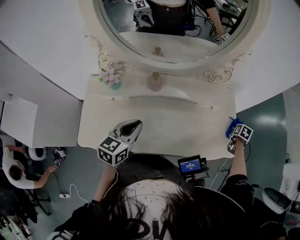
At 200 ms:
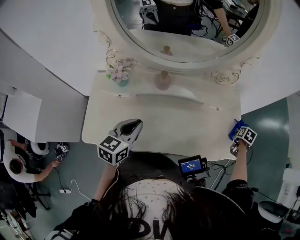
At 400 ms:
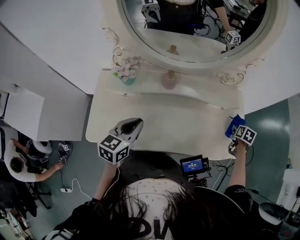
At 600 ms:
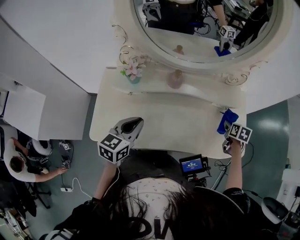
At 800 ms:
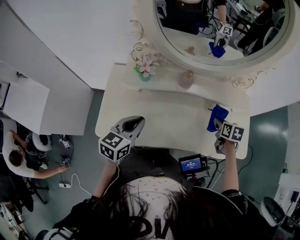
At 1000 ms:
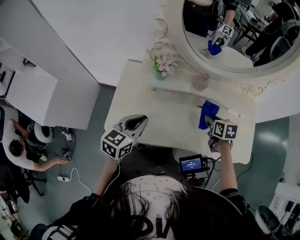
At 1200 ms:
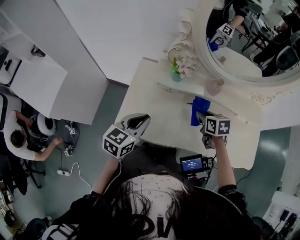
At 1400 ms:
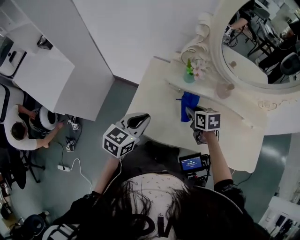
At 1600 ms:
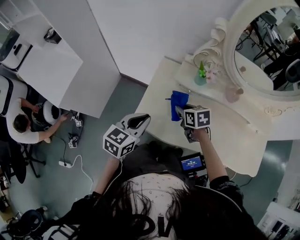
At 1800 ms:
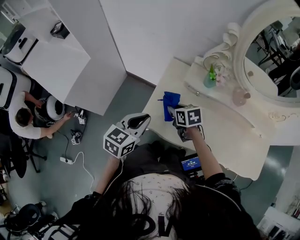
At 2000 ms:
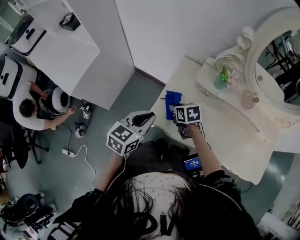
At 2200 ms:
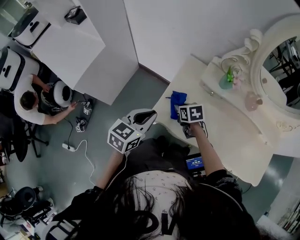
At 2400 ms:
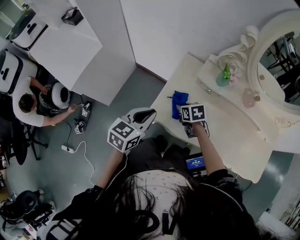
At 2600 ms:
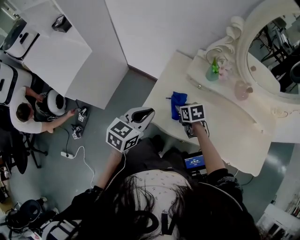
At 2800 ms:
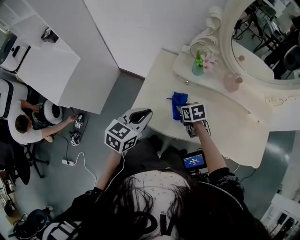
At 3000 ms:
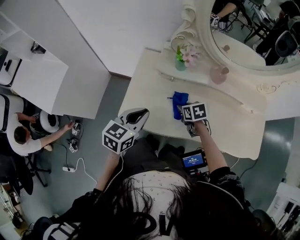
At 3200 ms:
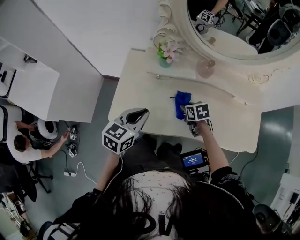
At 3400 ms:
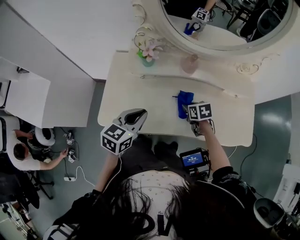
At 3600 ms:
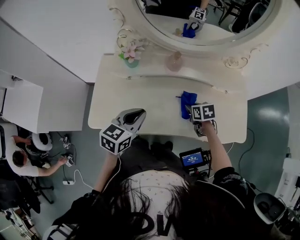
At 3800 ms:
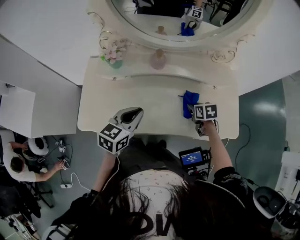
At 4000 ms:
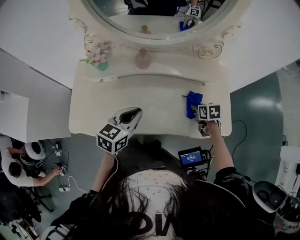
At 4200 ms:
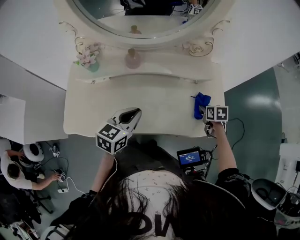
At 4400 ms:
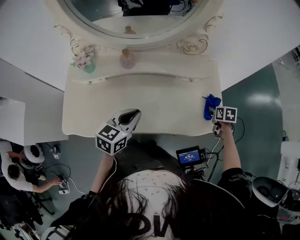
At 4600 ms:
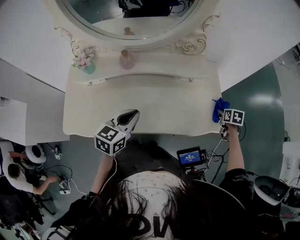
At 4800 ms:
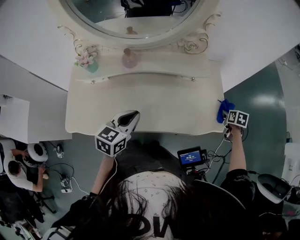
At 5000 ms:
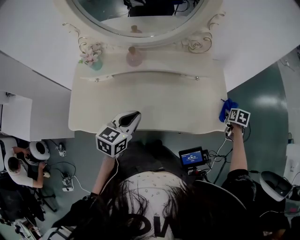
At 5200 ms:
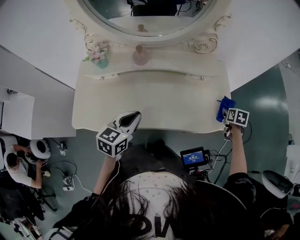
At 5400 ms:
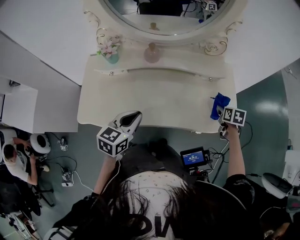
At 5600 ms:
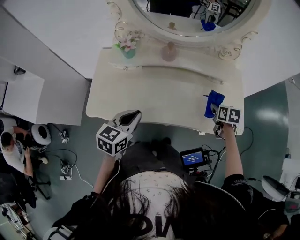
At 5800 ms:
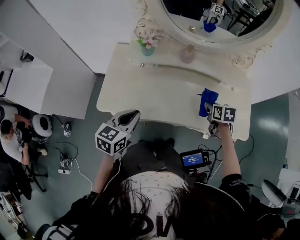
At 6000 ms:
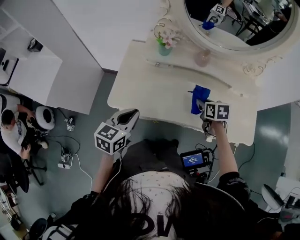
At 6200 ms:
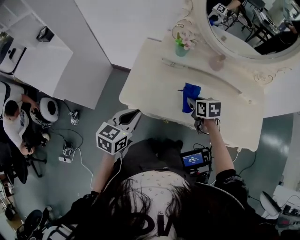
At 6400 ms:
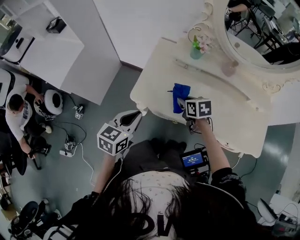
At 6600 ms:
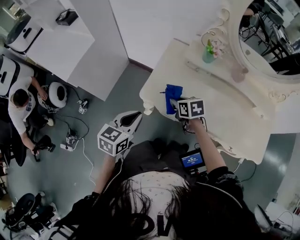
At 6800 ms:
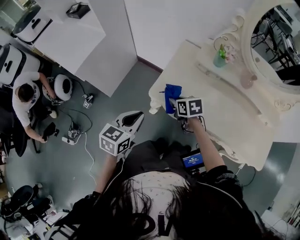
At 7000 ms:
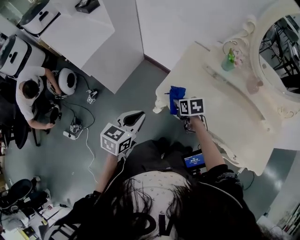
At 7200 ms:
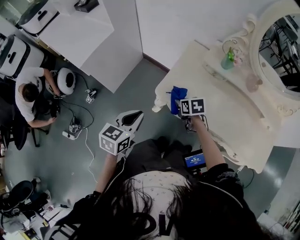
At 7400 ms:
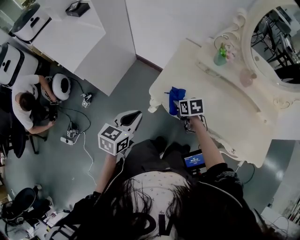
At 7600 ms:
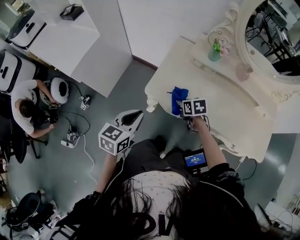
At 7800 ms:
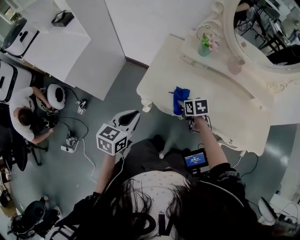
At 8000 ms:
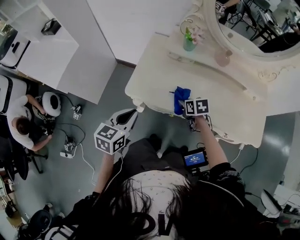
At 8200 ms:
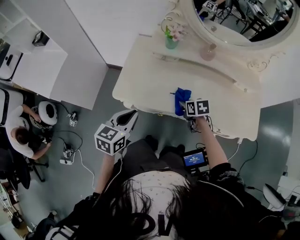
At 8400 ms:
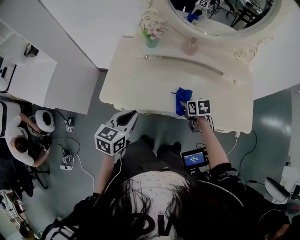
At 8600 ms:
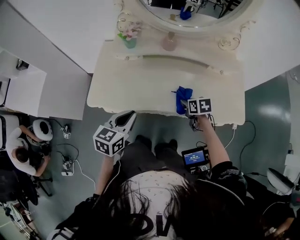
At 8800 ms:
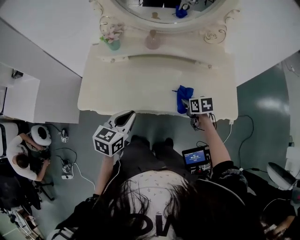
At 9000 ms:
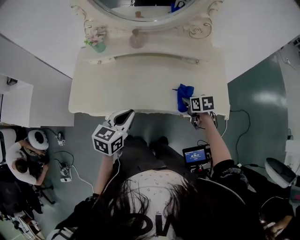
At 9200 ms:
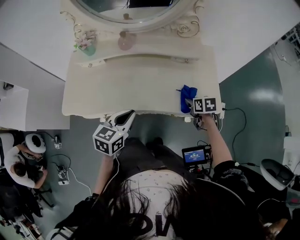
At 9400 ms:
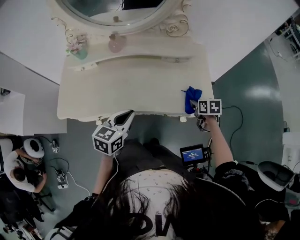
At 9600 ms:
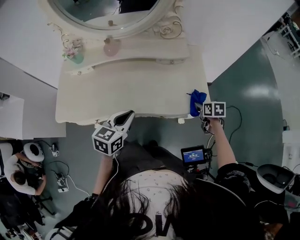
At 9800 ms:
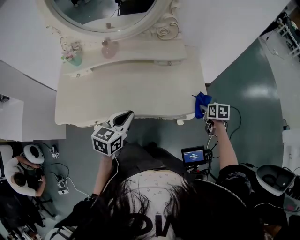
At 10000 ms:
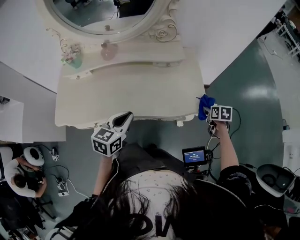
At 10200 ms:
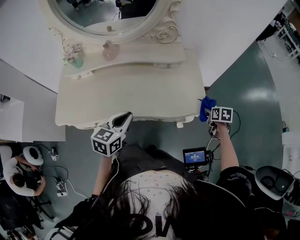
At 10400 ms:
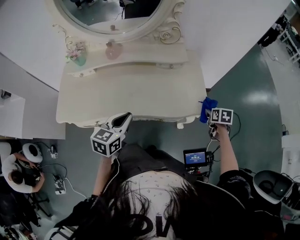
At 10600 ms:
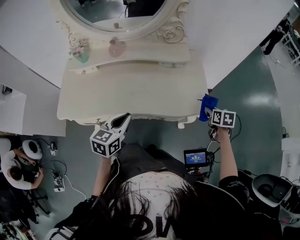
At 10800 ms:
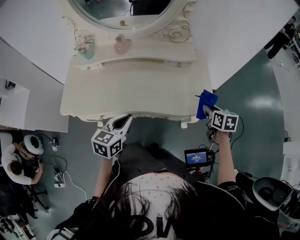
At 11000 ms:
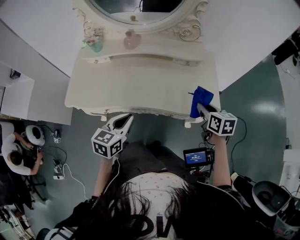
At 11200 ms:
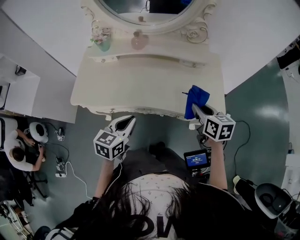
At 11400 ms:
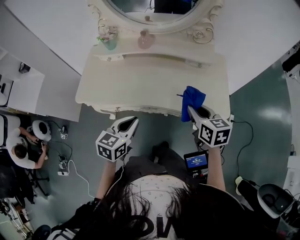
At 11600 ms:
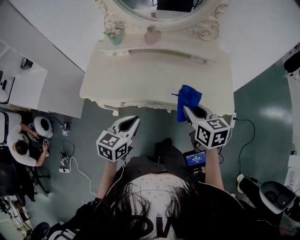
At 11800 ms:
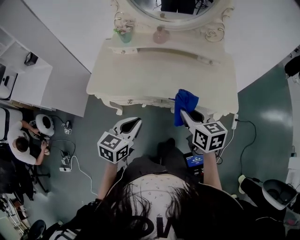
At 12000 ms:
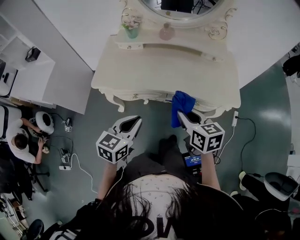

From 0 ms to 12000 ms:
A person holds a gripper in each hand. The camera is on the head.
From 0 ms to 1600 ms: The right gripper moves about 80 cm, and rotates approximately 70 degrees, while the left gripper moves roughly 30 cm.
From 1600 ms to 3000 ms: The left gripper shifts roughly 5 cm to the right, while the right gripper travels to the right and downward by some 10 cm.
From 3000 ms to 4400 ms: The left gripper moves approximately 35 cm. The right gripper shifts by some 60 cm, and turns by roughly 40 degrees.
From 4400 ms to 6000 ms: The left gripper moves some 30 cm, while the right gripper moves roughly 40 cm, and swivels approximately 30 degrees.
From 6000 ms to 7600 ms: The right gripper moves approximately 30 cm, and rotates about 20 degrees, while the left gripper ends up roughly 15 cm from where it was.
From 7600 ms to 9000 ms: The two grippers go about 40 cm to the right. The left gripper rotates roughly 20 degrees, while the right gripper turns by approximately 30 degrees.
From 9000 ms to 10400 ms: The left gripper travels to the right by about 10 cm. Meanwhile the right gripper goes some 30 cm to the right, and changes its angle by about 20 degrees.
From 10400 ms to 12000 ms: The left gripper is displaced backward and to the left by some 25 cm; the right gripper goes about 50 cm to the left and upward, and angles its fingers upward, by some 30 degrees.

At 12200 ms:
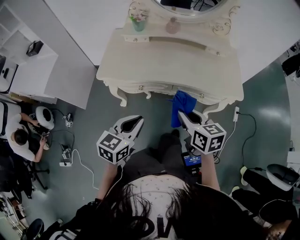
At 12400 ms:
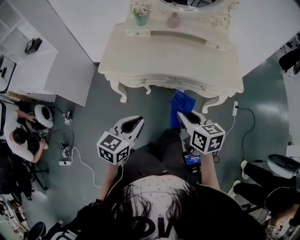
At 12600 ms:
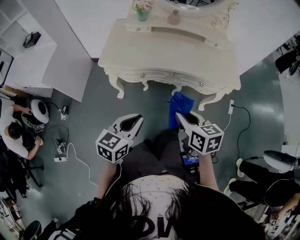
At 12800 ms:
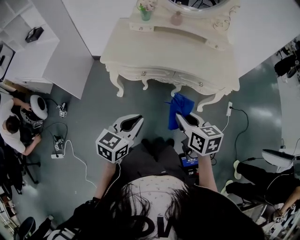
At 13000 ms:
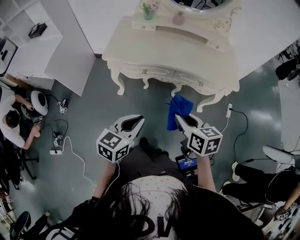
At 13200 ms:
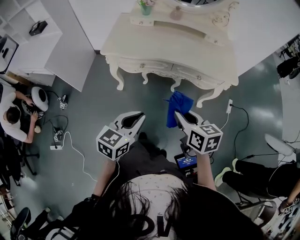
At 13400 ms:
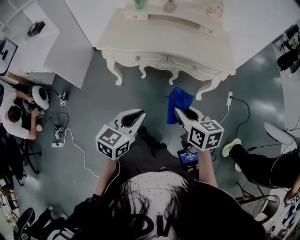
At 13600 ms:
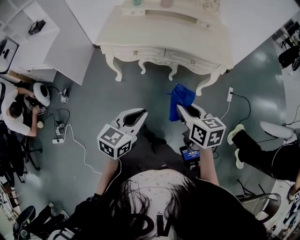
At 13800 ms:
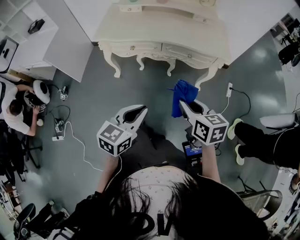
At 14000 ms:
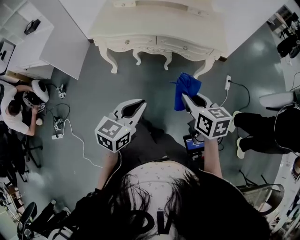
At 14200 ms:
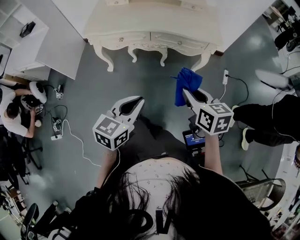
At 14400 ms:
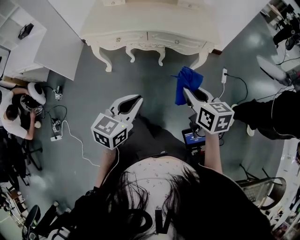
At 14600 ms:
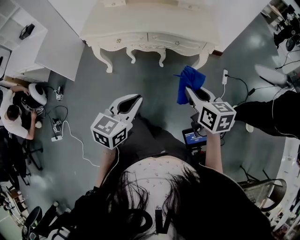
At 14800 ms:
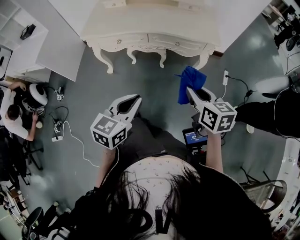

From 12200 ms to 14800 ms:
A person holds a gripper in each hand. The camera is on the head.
From 12200 ms to 13400 ms: The two grippers go roughly 15 cm backward.
From 13400 ms to 14800 ms: The right gripper travels to the right by about 15 cm. Meanwhile the left gripper shifts about 10 cm to the right.

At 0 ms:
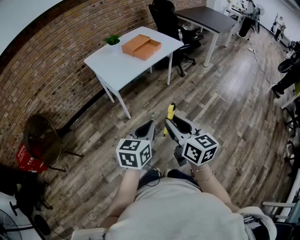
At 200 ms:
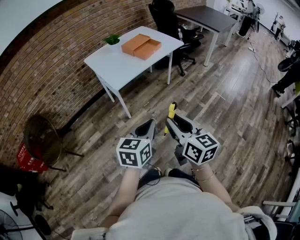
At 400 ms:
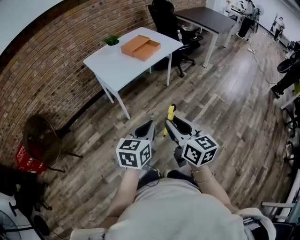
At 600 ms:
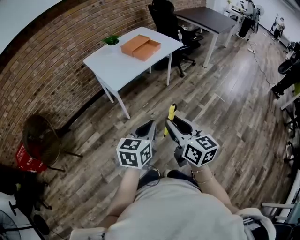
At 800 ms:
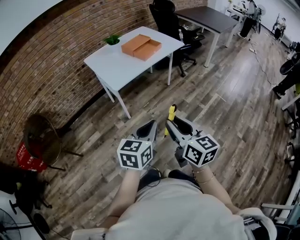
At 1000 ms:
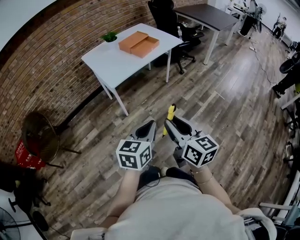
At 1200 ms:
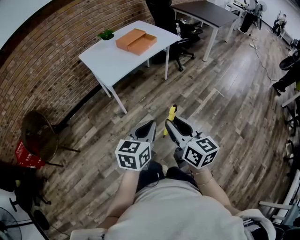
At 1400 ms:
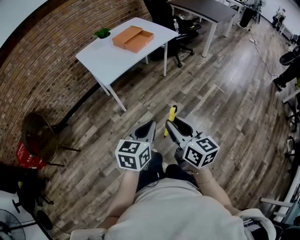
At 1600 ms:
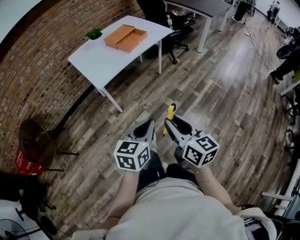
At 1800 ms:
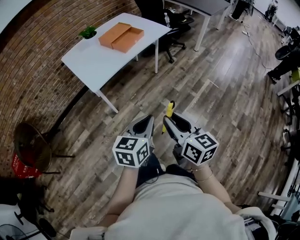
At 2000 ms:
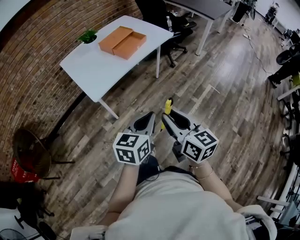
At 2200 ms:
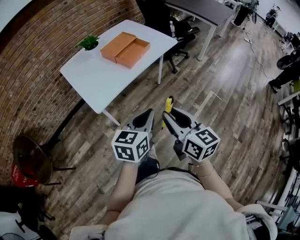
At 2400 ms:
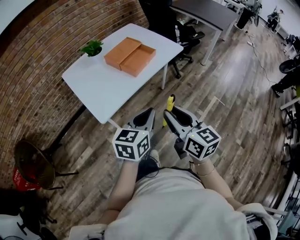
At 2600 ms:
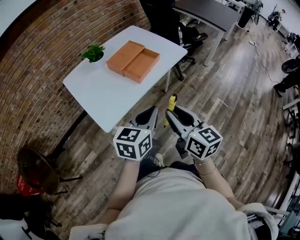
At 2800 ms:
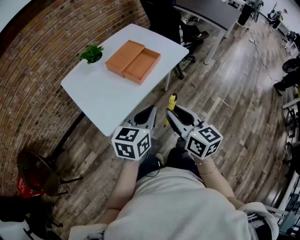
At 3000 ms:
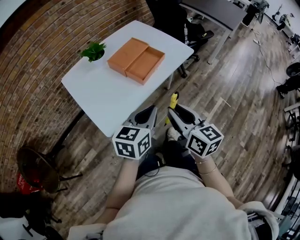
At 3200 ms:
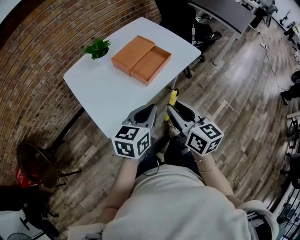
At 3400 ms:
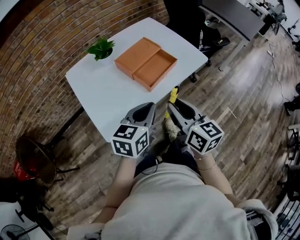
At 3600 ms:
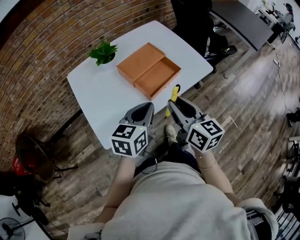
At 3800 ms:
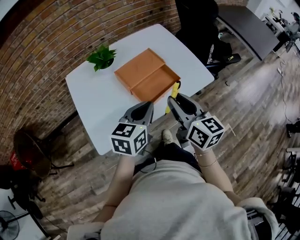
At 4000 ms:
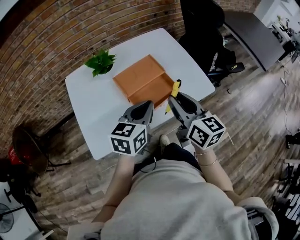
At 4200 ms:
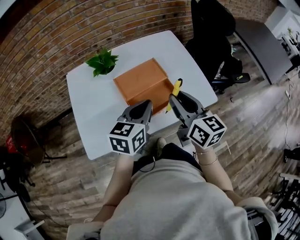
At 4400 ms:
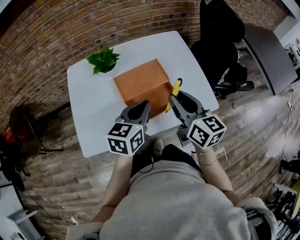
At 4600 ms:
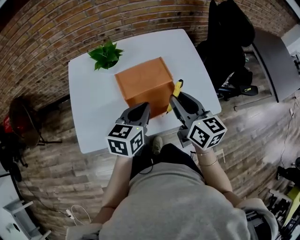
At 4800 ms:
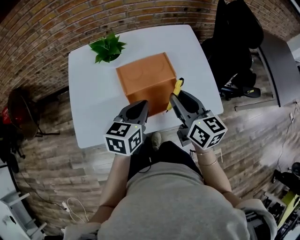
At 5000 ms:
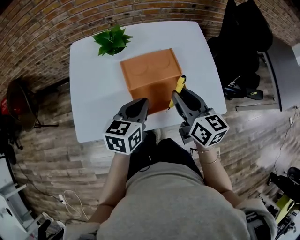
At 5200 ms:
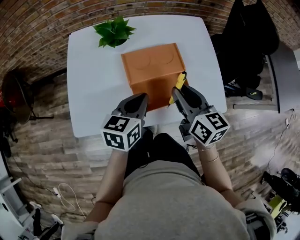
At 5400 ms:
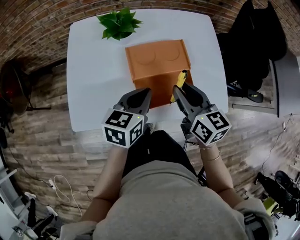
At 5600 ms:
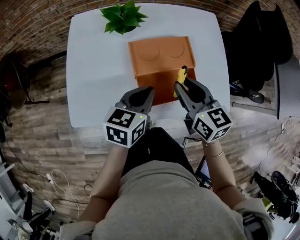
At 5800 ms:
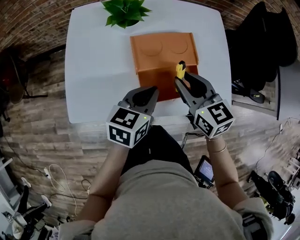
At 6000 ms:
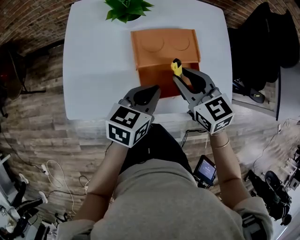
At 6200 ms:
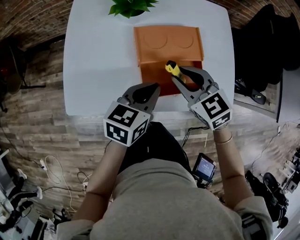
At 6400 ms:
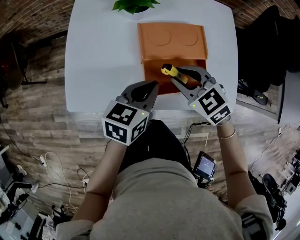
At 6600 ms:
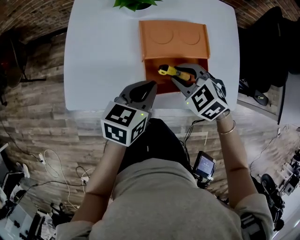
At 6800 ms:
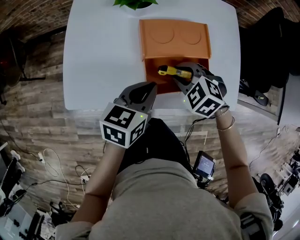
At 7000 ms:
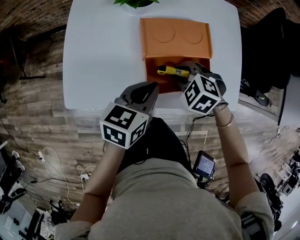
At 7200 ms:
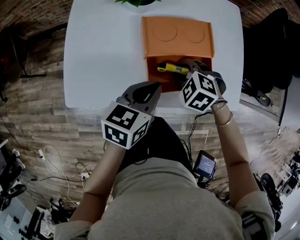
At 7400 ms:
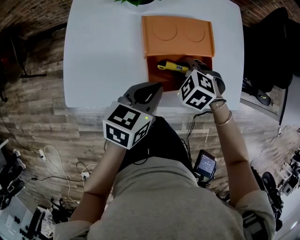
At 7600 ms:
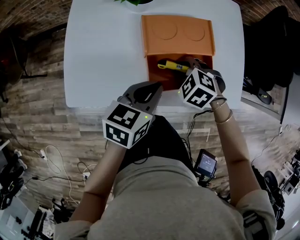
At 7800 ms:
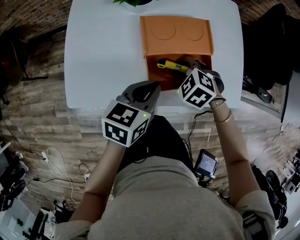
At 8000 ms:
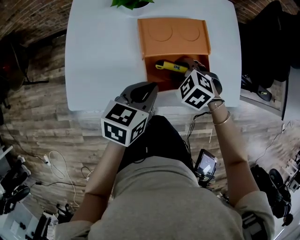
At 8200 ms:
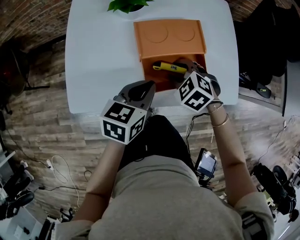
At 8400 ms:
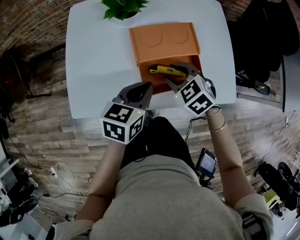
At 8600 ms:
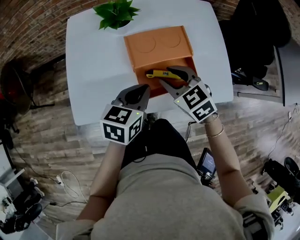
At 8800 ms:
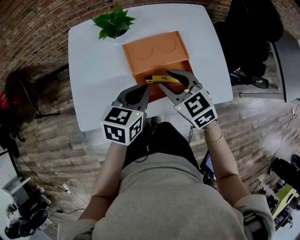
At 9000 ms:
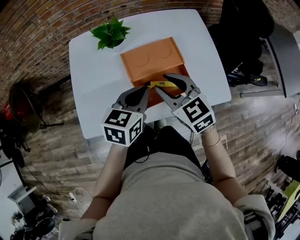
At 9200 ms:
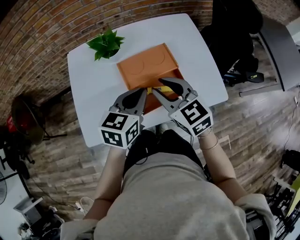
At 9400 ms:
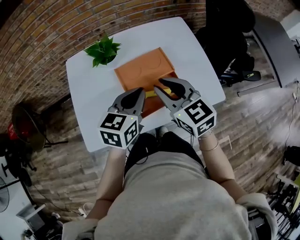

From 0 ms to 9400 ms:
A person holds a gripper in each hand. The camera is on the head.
From 0 ms to 1600 ms: Both grippers travel together to the right, about 10 cm.
From 1600 ms to 3200 ms: The two grippers travel together, forward, approximately 40 cm.
From 3200 ms to 4800 ms: The right gripper shifts by about 35 cm, and changes its angle by about 30 degrees, while the left gripper changes place by about 25 cm, and rotates about 30 degrees.
From 4800 ms to 6200 ms: The left gripper shifts about 5 cm downward. The right gripper is displaced downward and to the left by about 10 cm, and swivels some 50 degrees.
From 6200 ms to 7800 ms: The right gripper heads downward, covering approximately 10 cm, and turns by about 40 degrees.
From 7800 ms to 9400 ms: The left gripper heads upward, covering some 10 cm, and swivels some 20 degrees. Meanwhile the right gripper goes some 25 cm upward, and tilts its fingers some 50 degrees upward.
